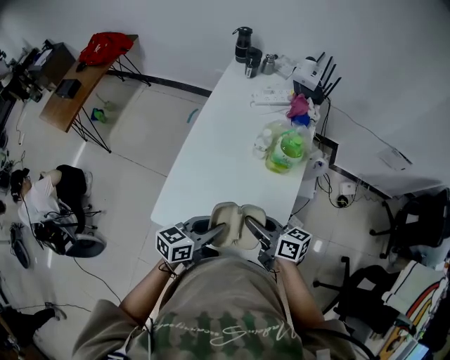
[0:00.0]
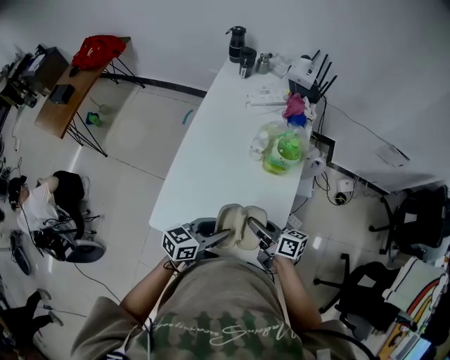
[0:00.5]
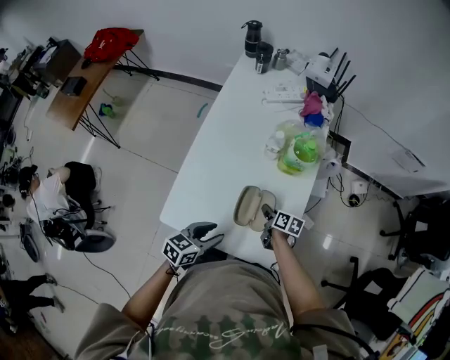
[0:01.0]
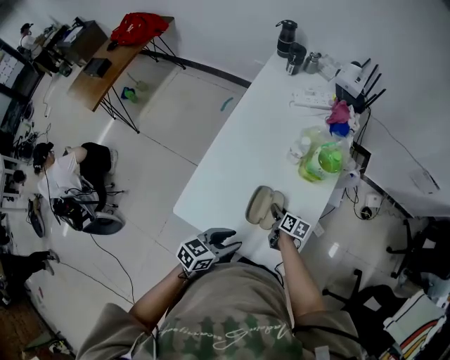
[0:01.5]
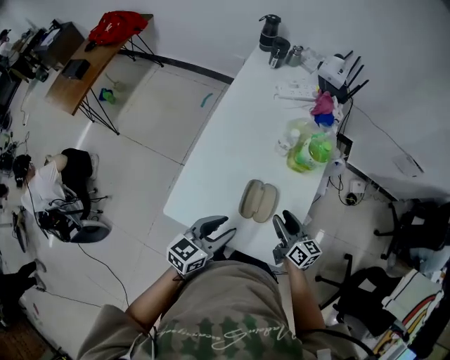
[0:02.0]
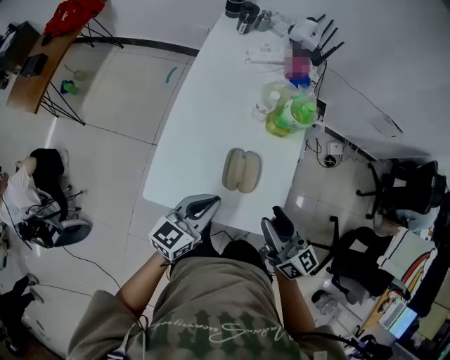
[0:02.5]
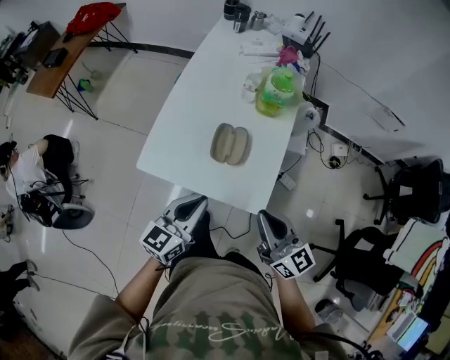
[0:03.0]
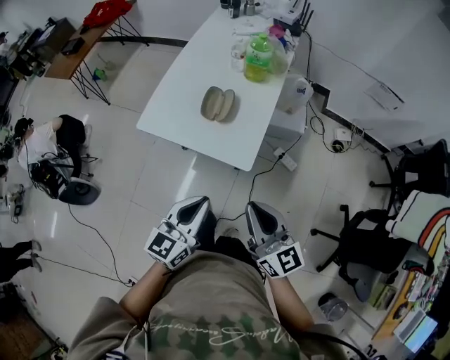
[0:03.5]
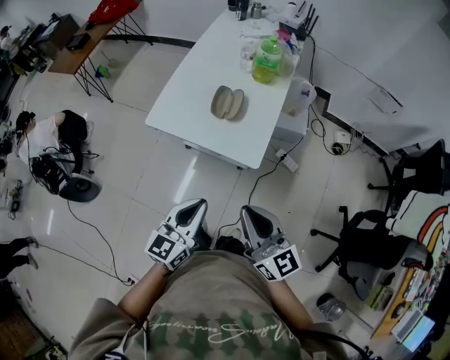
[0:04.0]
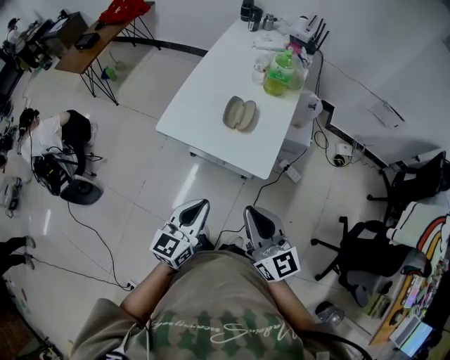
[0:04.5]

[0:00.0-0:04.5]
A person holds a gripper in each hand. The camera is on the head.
0:00.0 to 0:02.0: The left gripper reaches roughly 10 cm downward, then returns, and opens, while the right gripper reaches roughly 25 cm downward, then returns, changes its angle by roughly 20 degrees, and opens.
0:02.0 to 0:04.5: The right gripper travels backward and upward by roughly 40 cm, swivels some 30 degrees, and closes, while the left gripper travels backward by approximately 35 cm, changes its angle by about 20 degrees, and closes up.

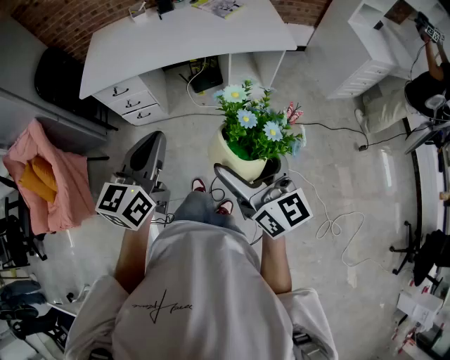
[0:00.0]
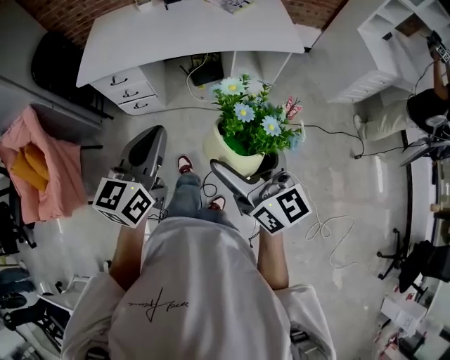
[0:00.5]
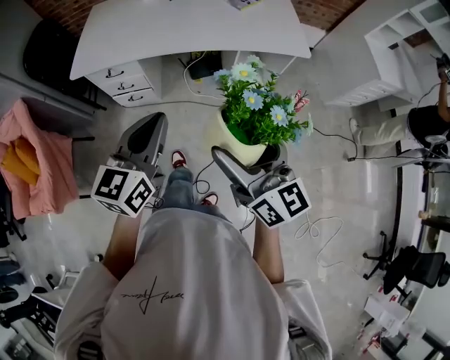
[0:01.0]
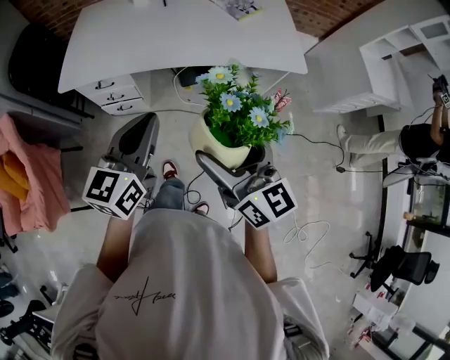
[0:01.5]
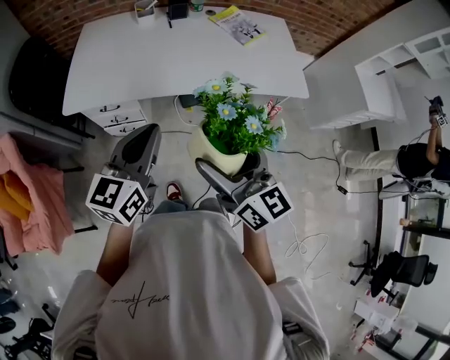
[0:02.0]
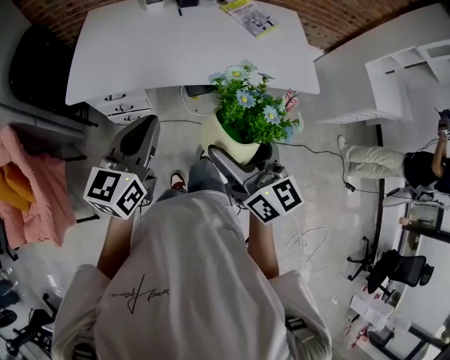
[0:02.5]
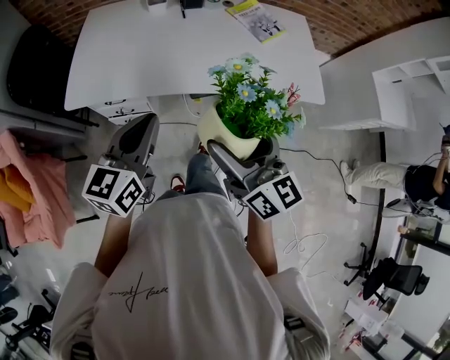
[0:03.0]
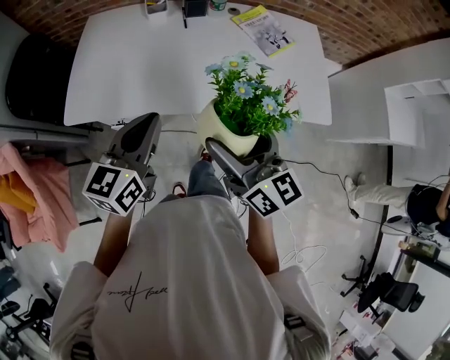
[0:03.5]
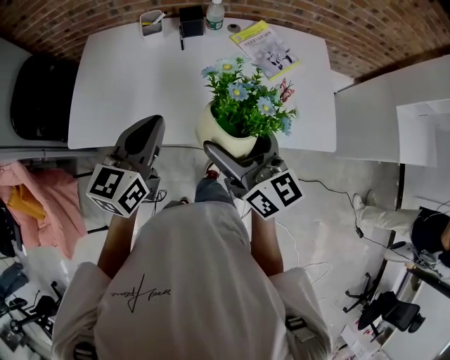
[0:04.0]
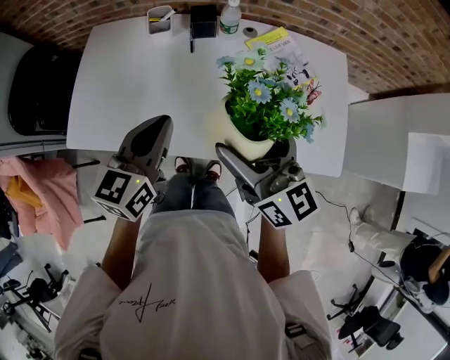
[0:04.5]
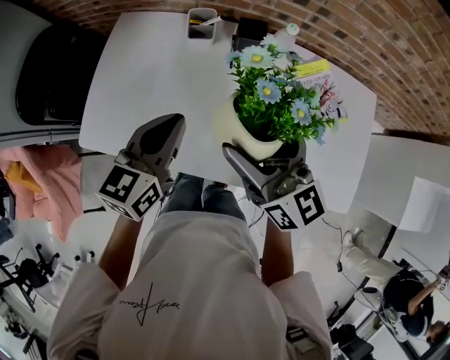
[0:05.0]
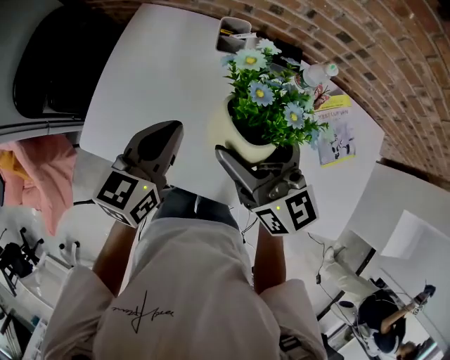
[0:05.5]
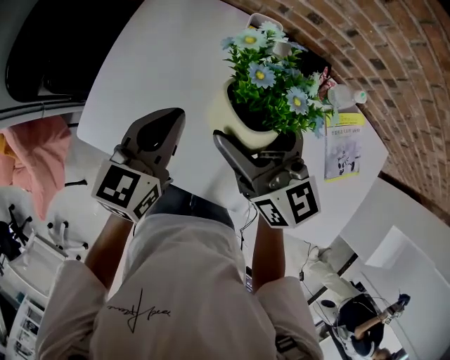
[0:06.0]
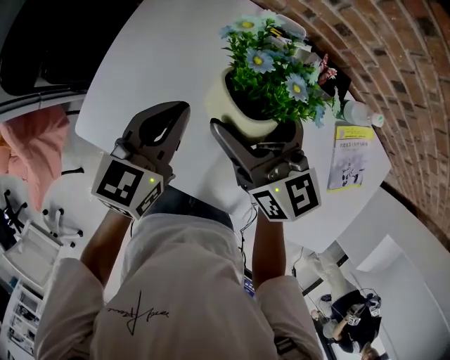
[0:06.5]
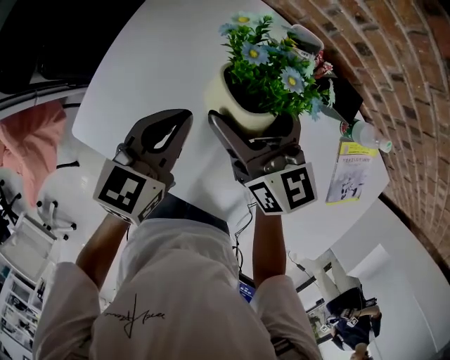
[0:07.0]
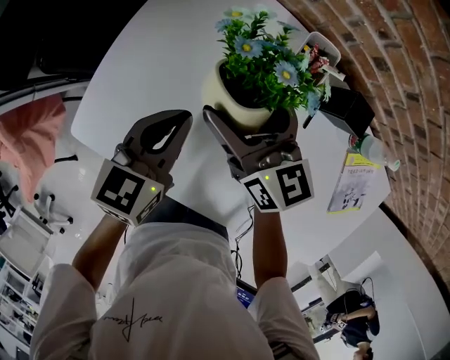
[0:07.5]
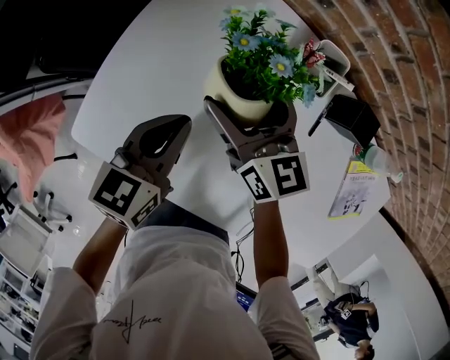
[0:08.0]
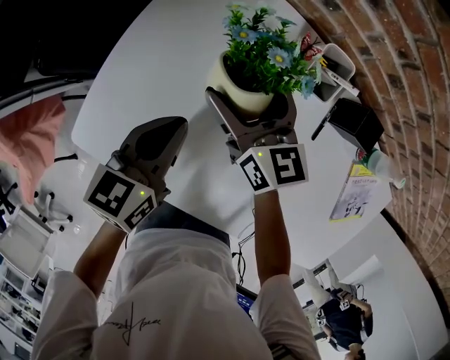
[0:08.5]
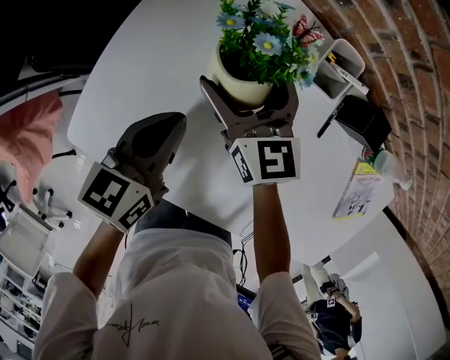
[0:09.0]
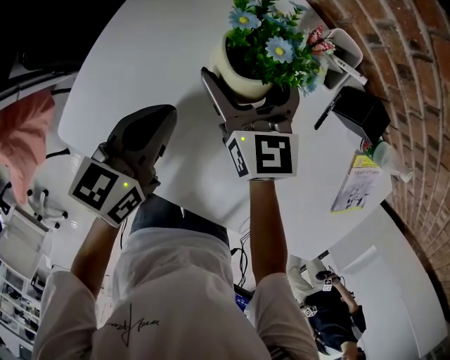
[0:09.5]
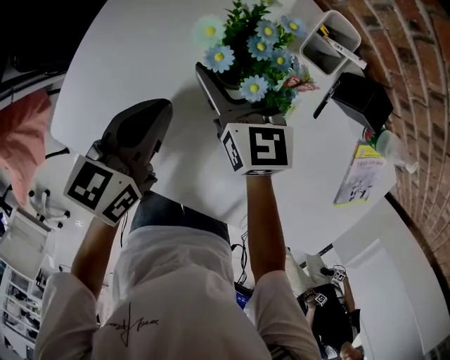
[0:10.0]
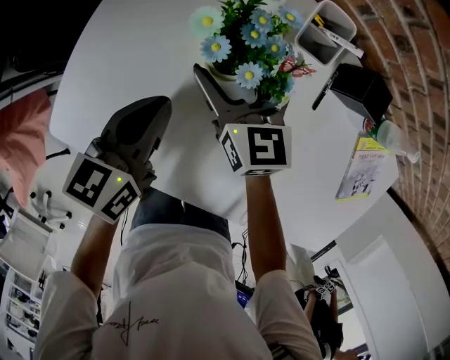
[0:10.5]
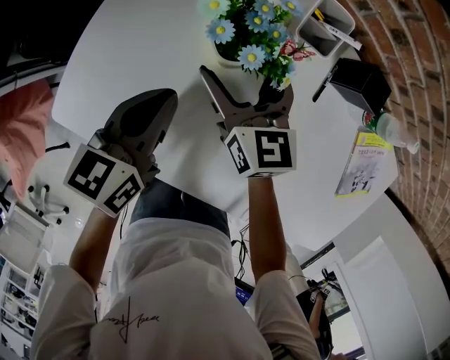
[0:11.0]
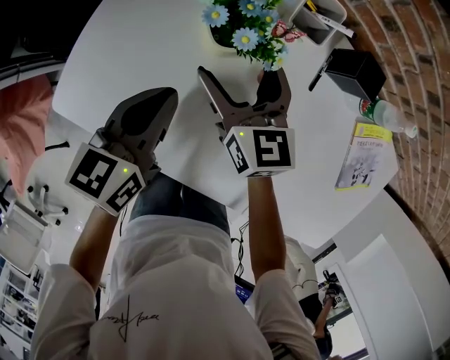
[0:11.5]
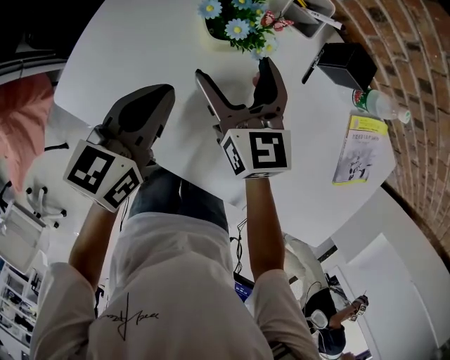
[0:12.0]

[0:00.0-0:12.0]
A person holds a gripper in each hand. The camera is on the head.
0:00.0 to 0:02.0: The grippers move only a little.
0:02.0 to 0:04.0: The left gripper goes backward and returns, about 15 cm each way. The right gripper travels backward and back again, roughly 10 cm each way.
0:06.0 to 0:08.0: The left gripper heads backward, covering roughly 5 cm.
0:08.0 to 0:10.0: The right gripper is displaced downward by approximately 5 cm.
0:10.0 to 0:12.0: Both grippers move backward and upward, about 10 cm.

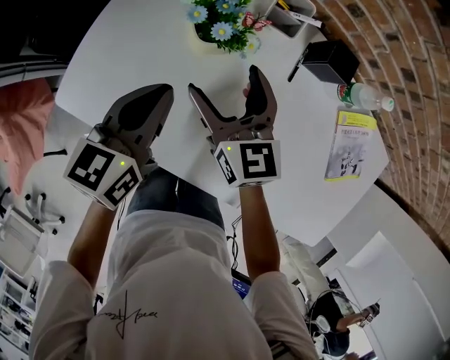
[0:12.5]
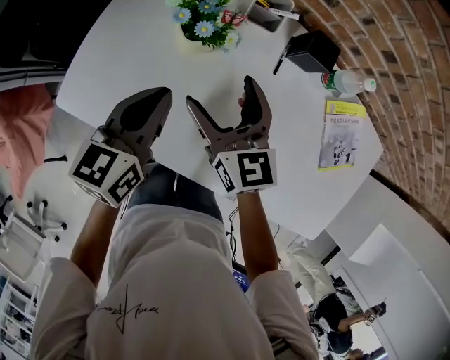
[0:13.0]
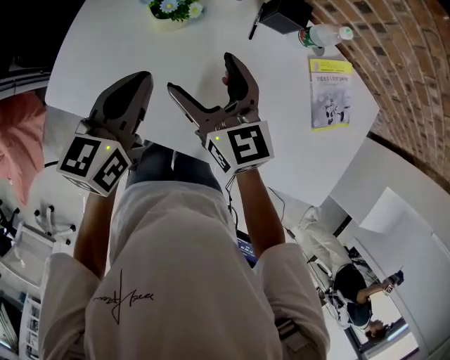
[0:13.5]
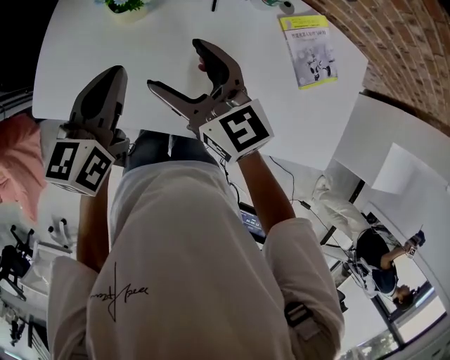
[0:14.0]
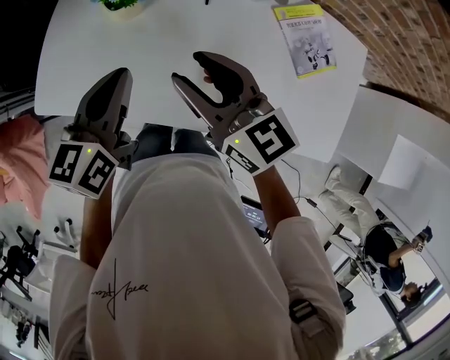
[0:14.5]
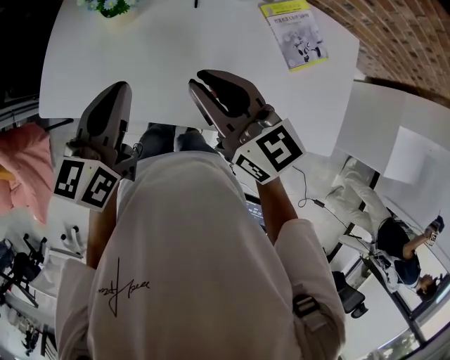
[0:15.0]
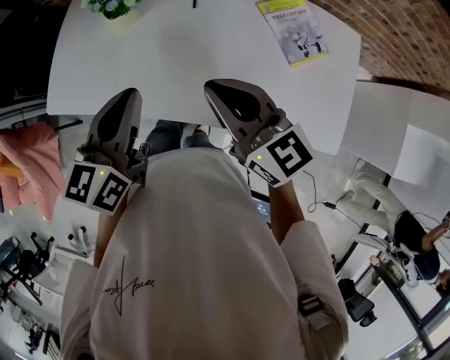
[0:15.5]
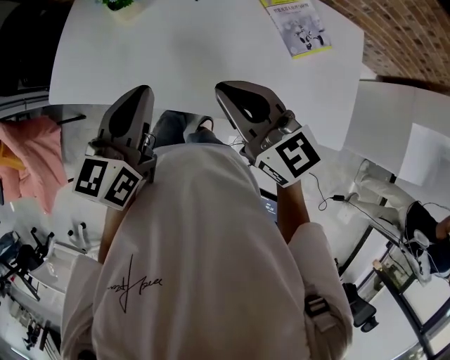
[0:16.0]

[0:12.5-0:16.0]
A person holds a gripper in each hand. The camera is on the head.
0:12.5 to 0:14.5: The left gripper heads backward, to the right and upward, covering some 15 cm; the right gripper travels backward, upward and to the right by some 25 cm, and closes its fingers.
0:14.5 to 0:16.0: Both grippers travel together backward and to the right, roughly 15 cm.

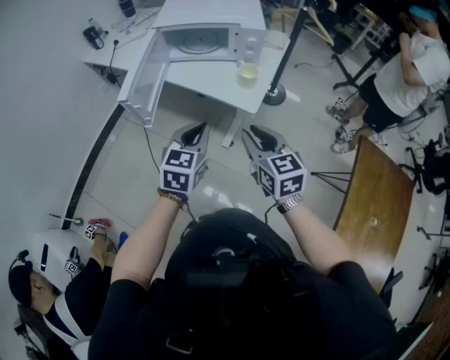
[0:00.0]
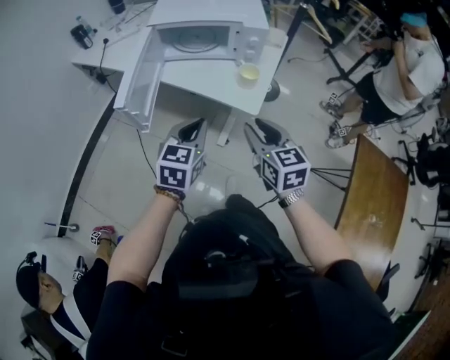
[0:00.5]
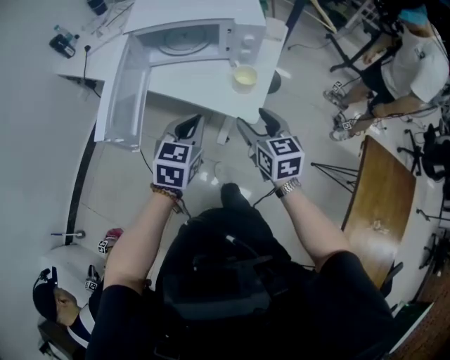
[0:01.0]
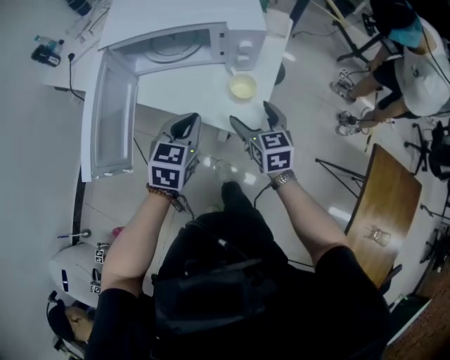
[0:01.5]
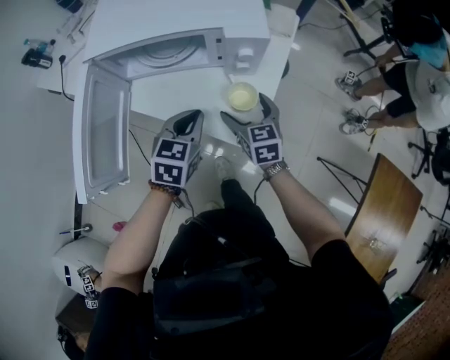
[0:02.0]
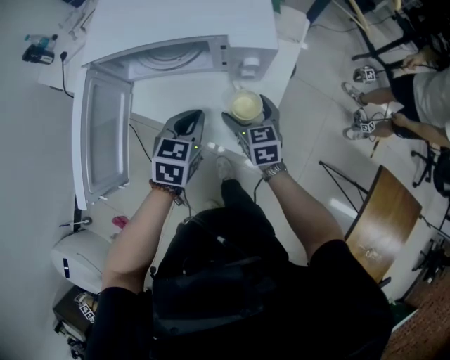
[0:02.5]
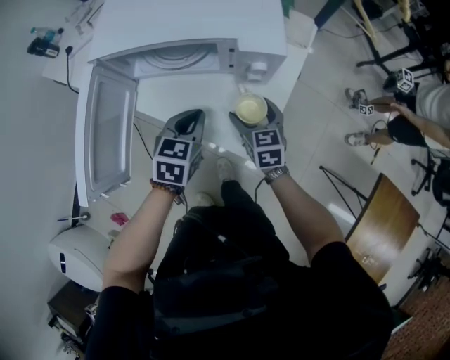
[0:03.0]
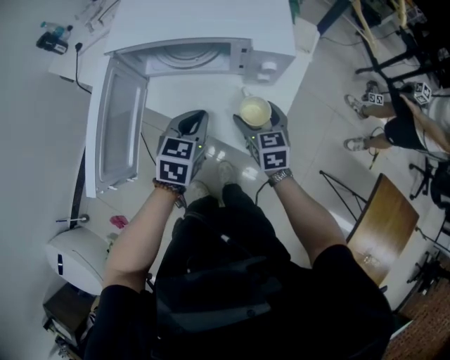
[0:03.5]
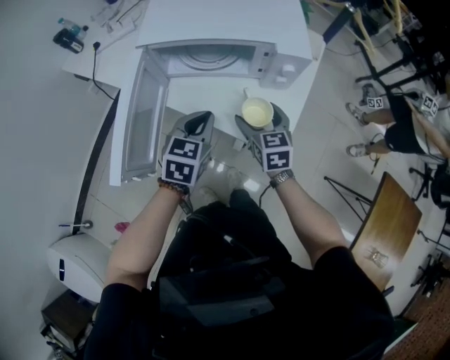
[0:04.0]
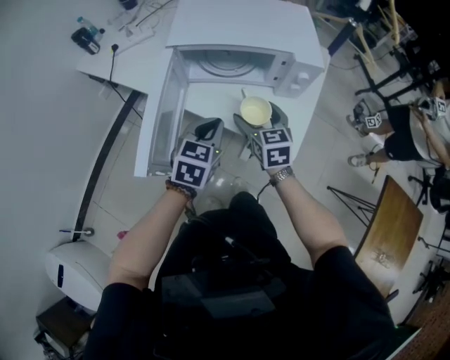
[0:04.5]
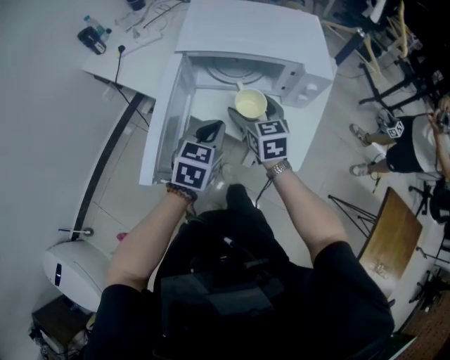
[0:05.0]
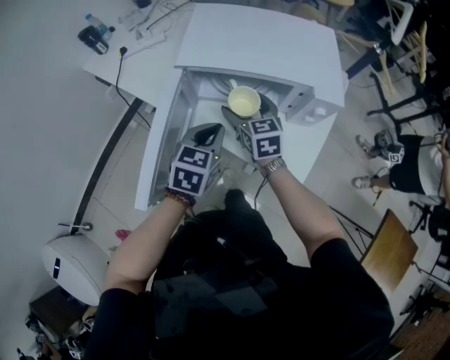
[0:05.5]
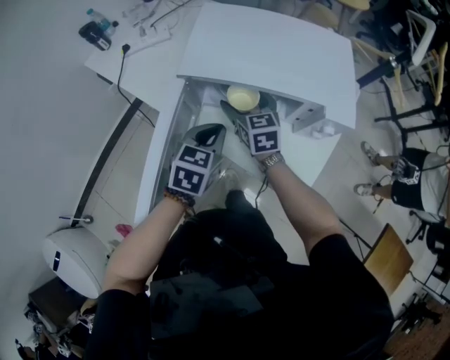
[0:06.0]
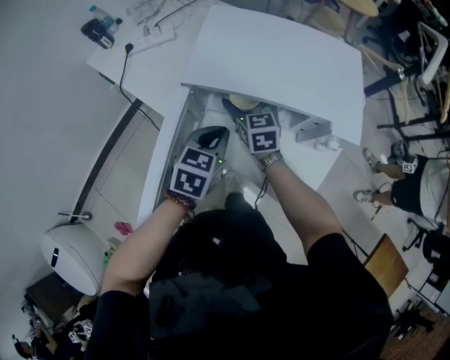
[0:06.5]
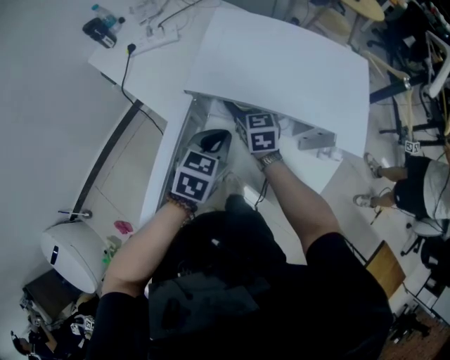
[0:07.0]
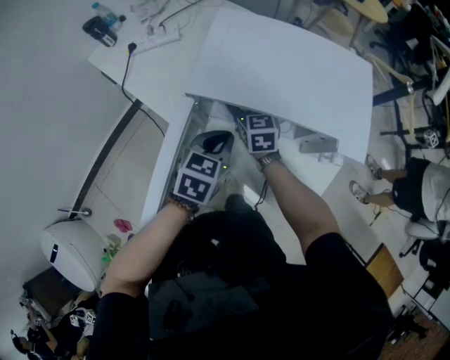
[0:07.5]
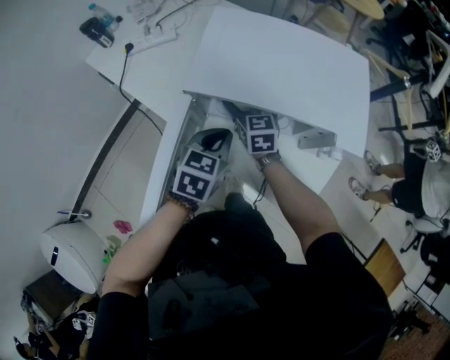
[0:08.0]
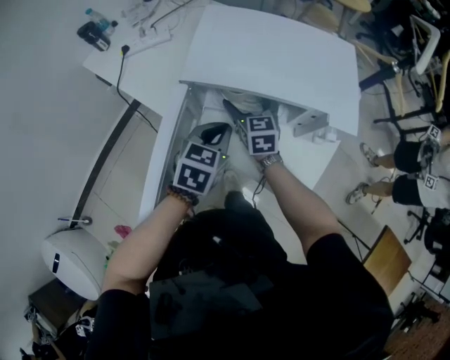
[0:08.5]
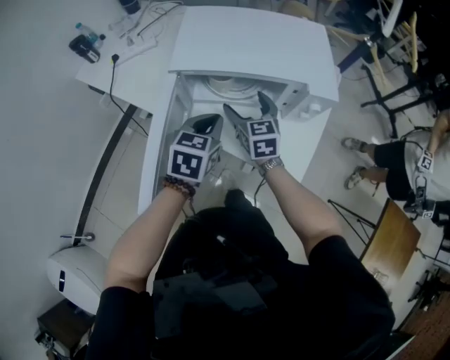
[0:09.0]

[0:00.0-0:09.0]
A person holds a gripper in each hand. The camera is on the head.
0:00.0 to 0:02.0: The grippers both shift forward and downward by roughly 35 cm. The right gripper opens up.
0:02.0 to 0:04.5: Both grippers travel together to the left and upward, about 15 cm.
0:04.5 to 0:07.0: The left gripper travels forward by roughly 15 cm, while the right gripper travels forward and to the left by some 25 cm.
0:07.0 to 0:09.0: The left gripper ends up approximately 5 cm from where it was, while the right gripper shifts roughly 10 cm backward and to the right.
